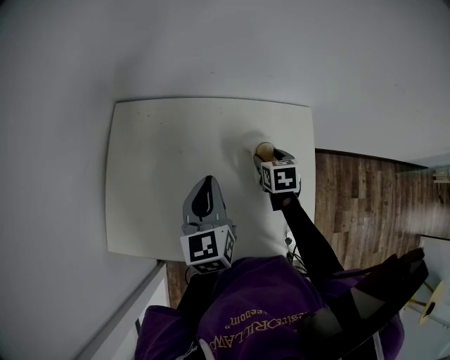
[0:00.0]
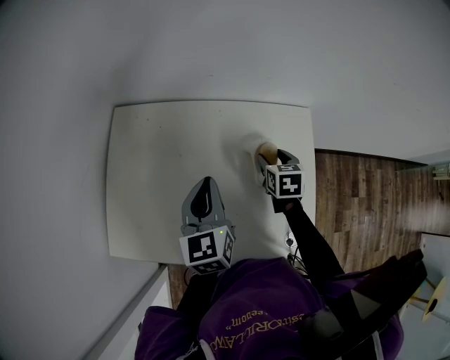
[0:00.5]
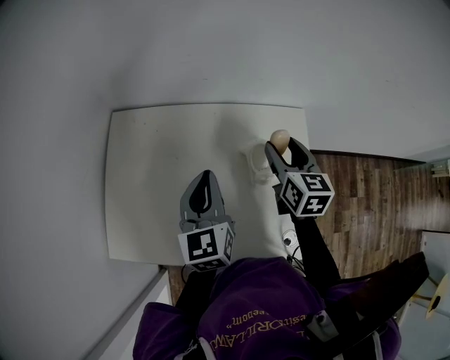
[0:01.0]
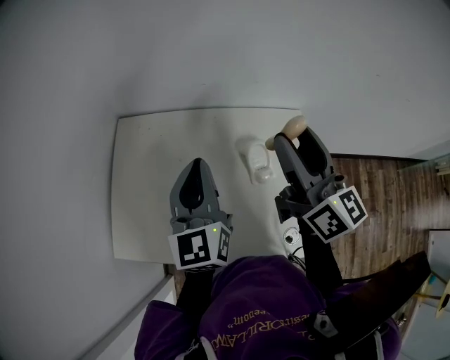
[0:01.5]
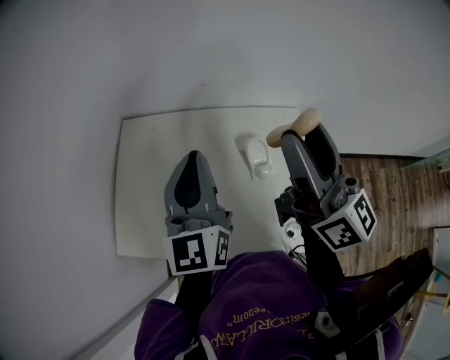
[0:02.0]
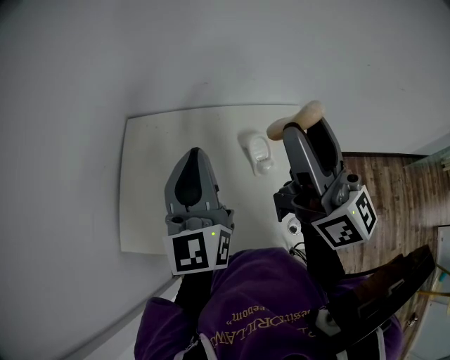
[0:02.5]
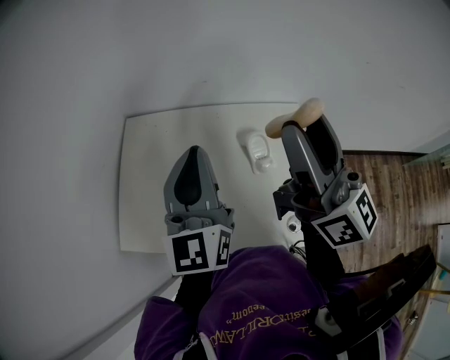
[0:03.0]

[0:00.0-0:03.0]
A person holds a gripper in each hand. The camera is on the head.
0:00.0 to 0:01.5: The right gripper travels upward by about 35 cm, and angles its fingers upward, by approximately 60 degrees. Meanwhile the left gripper goes some 10 cm upward.
0:01.5 to 0:03.0: The left gripper moves upward, about 10 cm, while the right gripper travels upward and backward by some 10 cm.

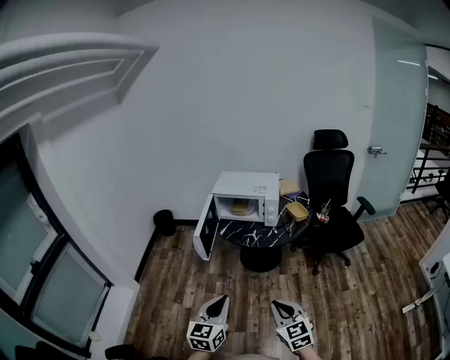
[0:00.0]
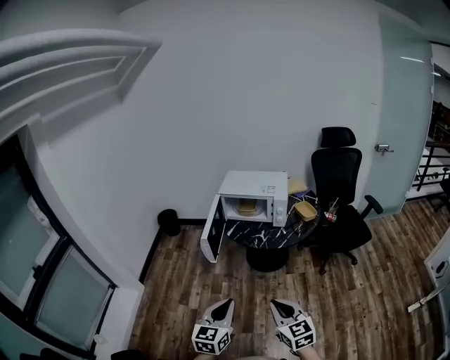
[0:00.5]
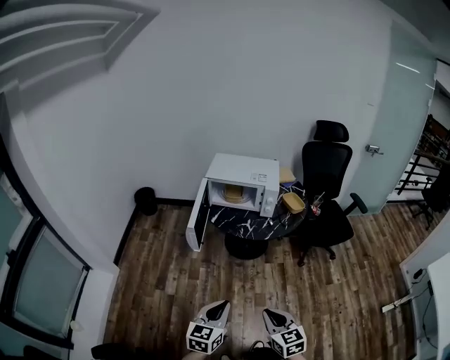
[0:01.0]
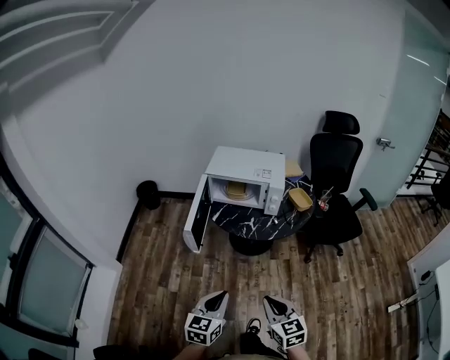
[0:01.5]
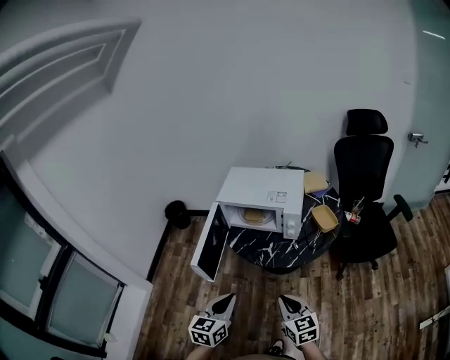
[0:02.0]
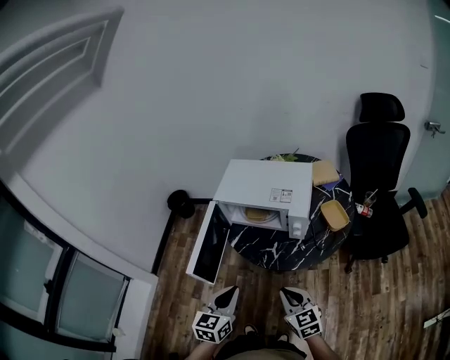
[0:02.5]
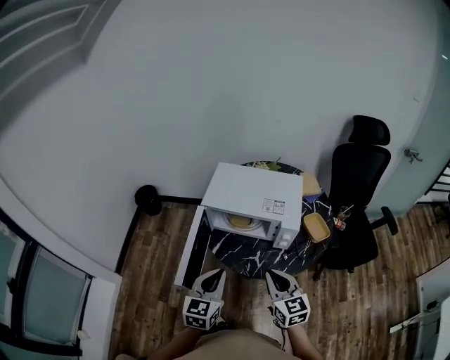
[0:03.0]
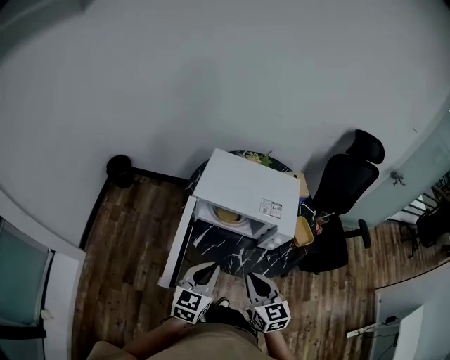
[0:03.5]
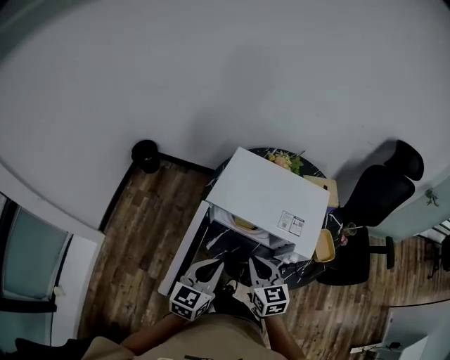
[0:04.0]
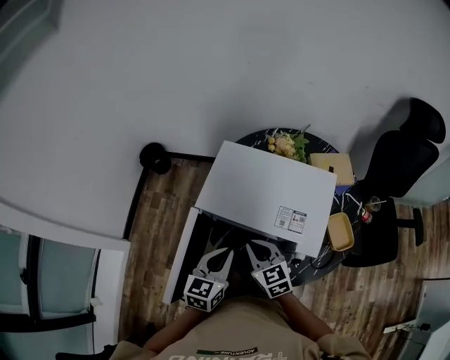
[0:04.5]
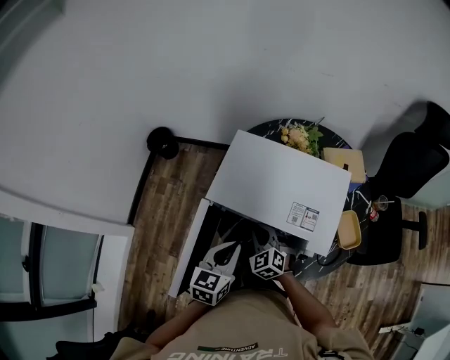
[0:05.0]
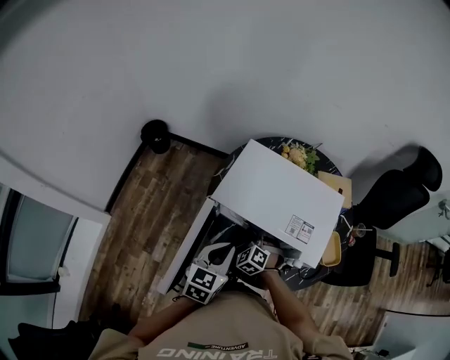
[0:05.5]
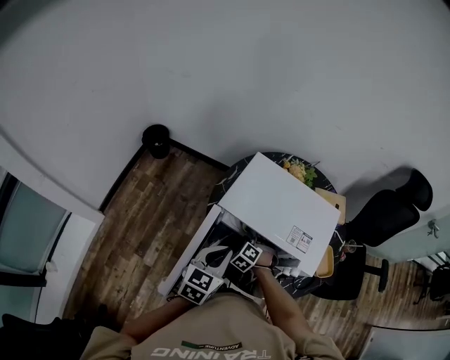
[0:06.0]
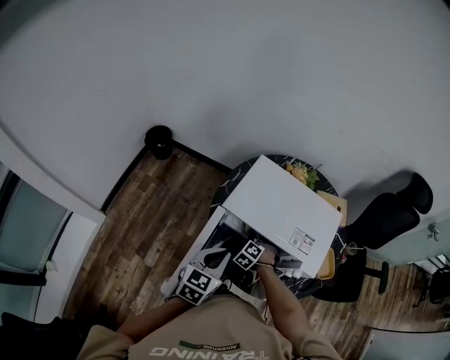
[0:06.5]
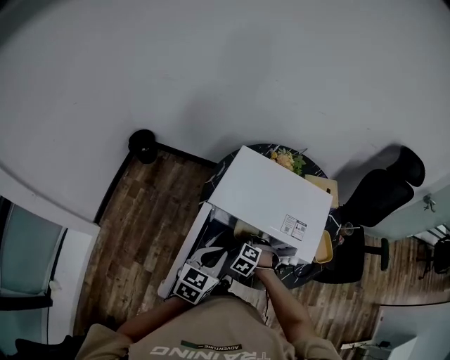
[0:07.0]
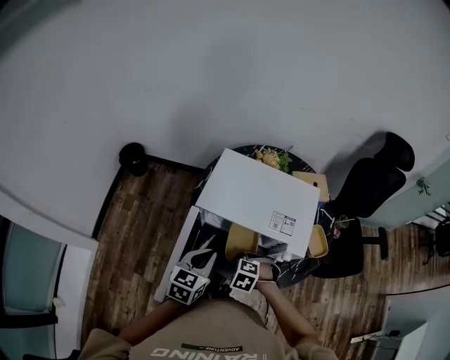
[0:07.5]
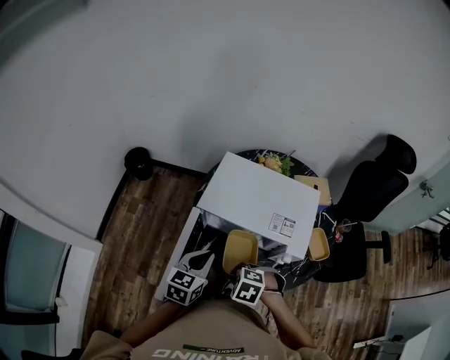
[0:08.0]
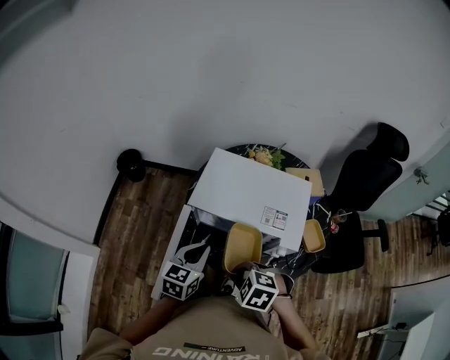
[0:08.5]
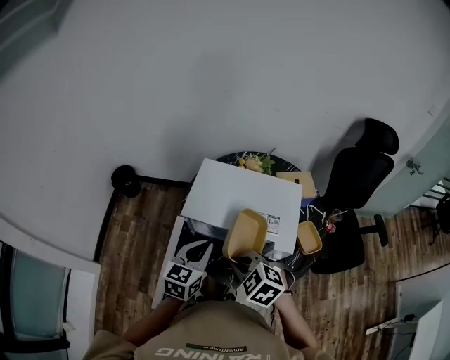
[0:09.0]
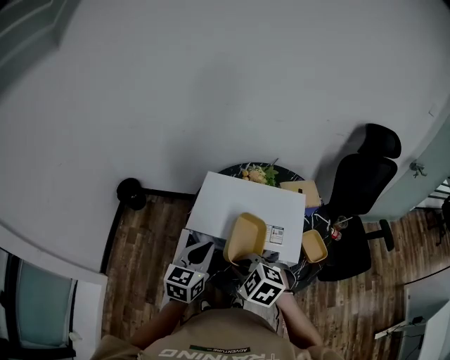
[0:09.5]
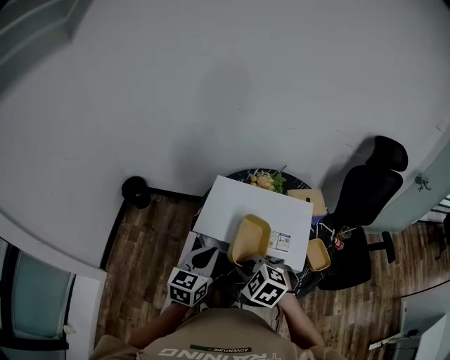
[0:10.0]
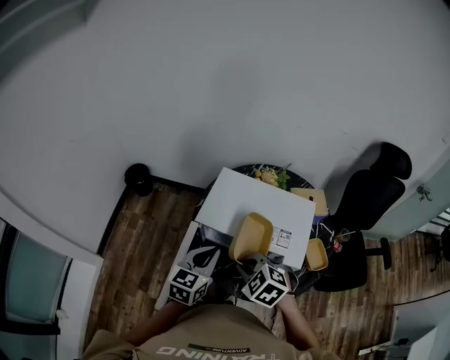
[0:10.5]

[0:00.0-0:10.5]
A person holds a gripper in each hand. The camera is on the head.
0:00.0 to 0:02.0: The grippers both shift forward by some 25 cm.
0:02.0 to 0:04.0: The two grippers go about 30 cm forward.
0:04.0 to 0:06.5: The left gripper shifts roughly 5 cm forward; the right gripper travels downward and forward by roughly 25 cm, and angles its fingers downward, by roughly 40 degrees.
0:06.5 to 0:08.5: The right gripper is displaced upward by approximately 20 cm, and turns by roughly 30 degrees.
0:08.5 to 0:10.5: The right gripper travels forward by roughly 10 cm.

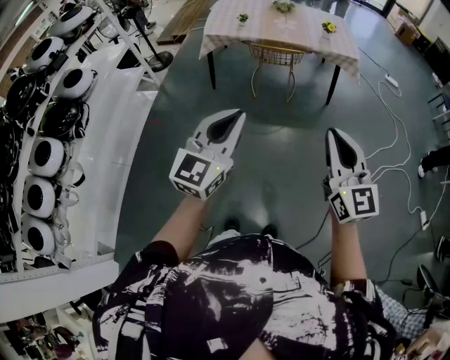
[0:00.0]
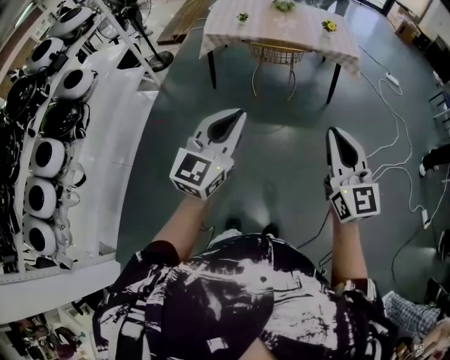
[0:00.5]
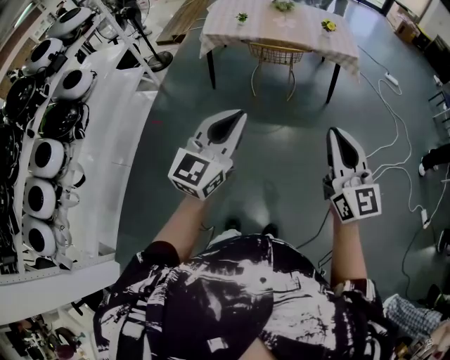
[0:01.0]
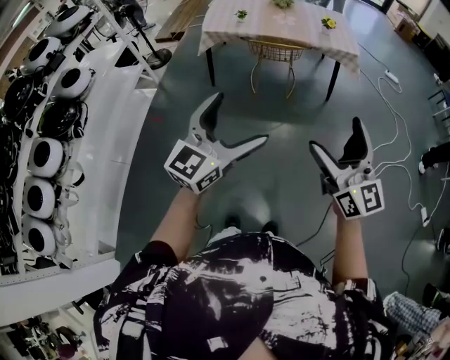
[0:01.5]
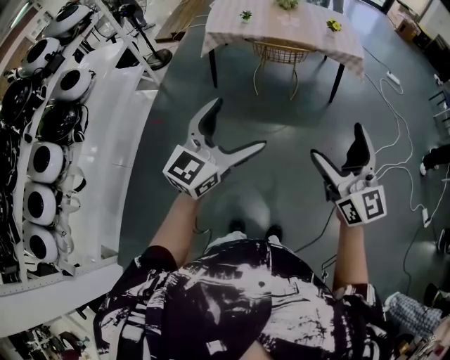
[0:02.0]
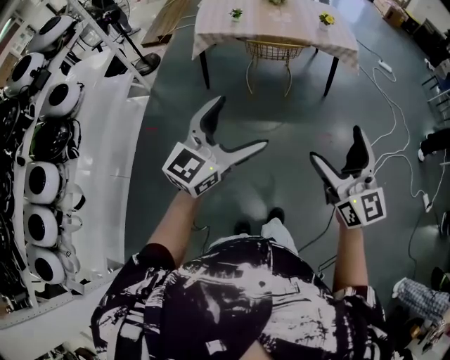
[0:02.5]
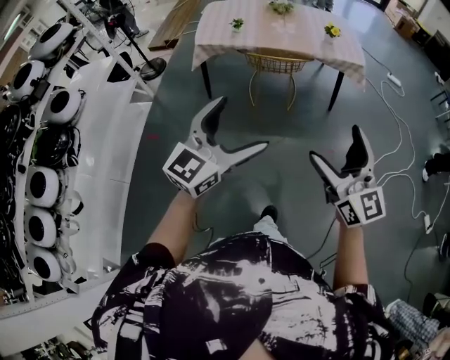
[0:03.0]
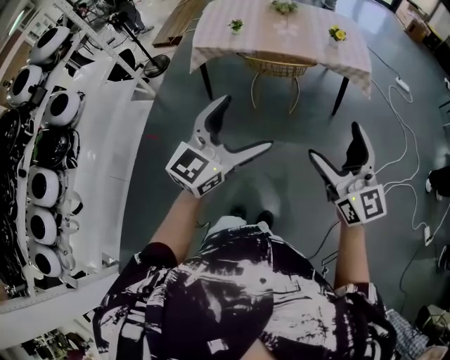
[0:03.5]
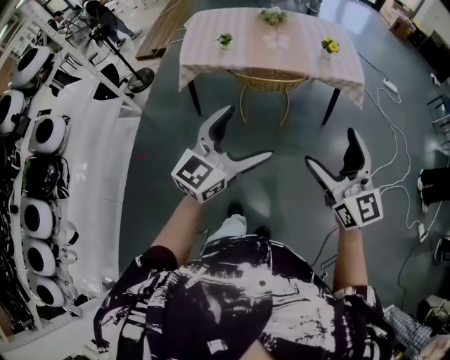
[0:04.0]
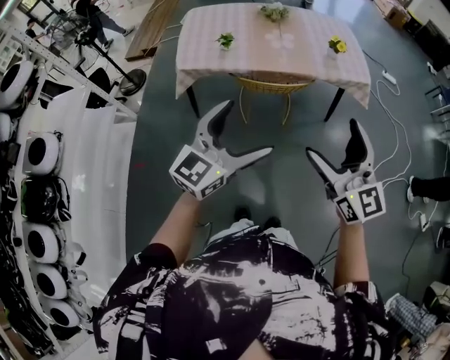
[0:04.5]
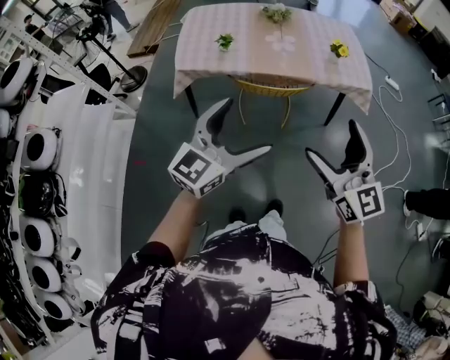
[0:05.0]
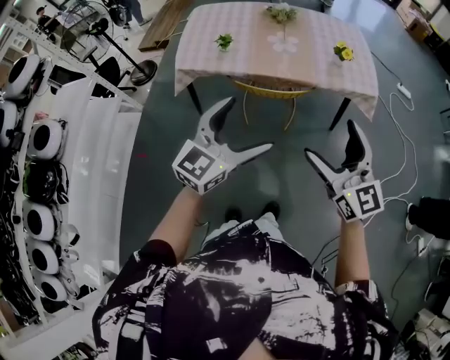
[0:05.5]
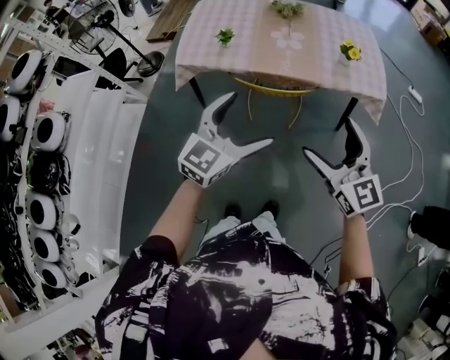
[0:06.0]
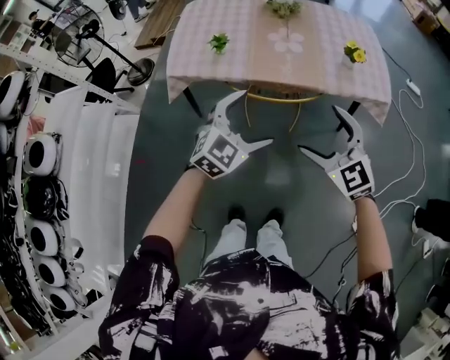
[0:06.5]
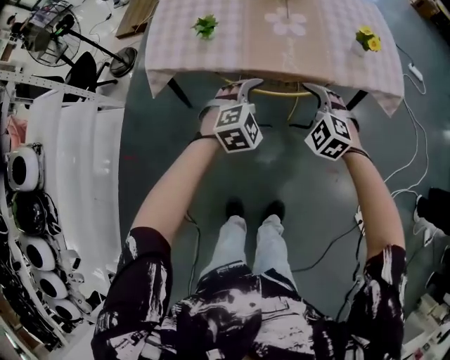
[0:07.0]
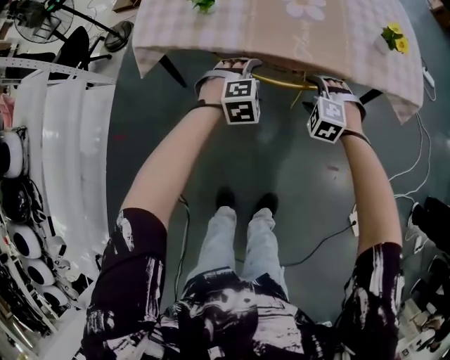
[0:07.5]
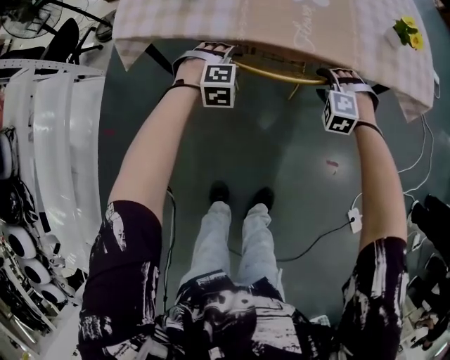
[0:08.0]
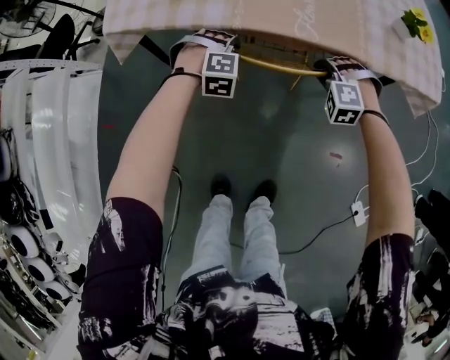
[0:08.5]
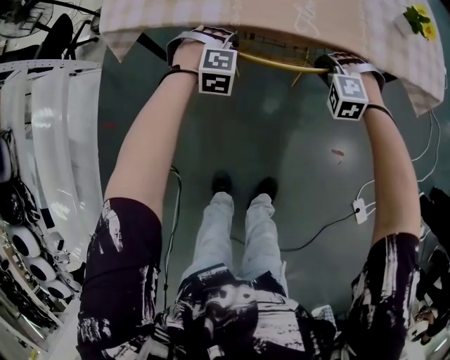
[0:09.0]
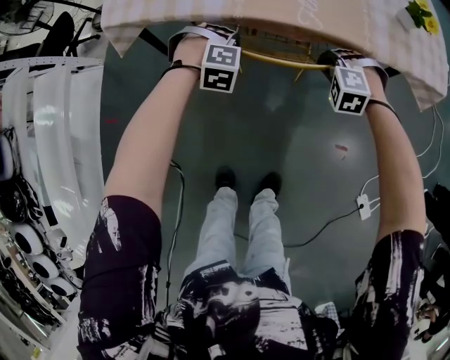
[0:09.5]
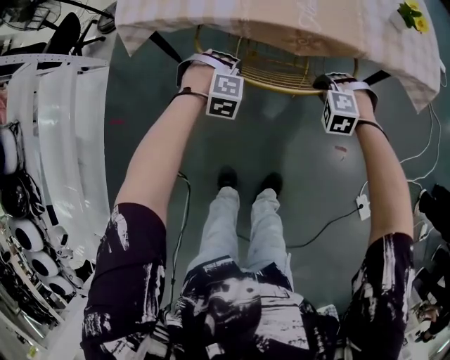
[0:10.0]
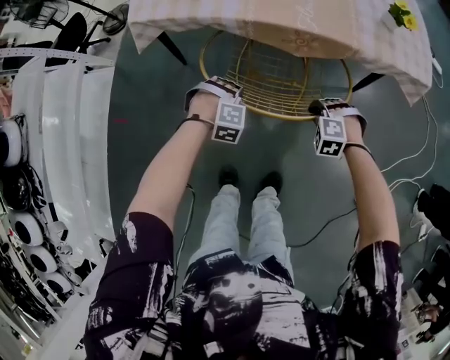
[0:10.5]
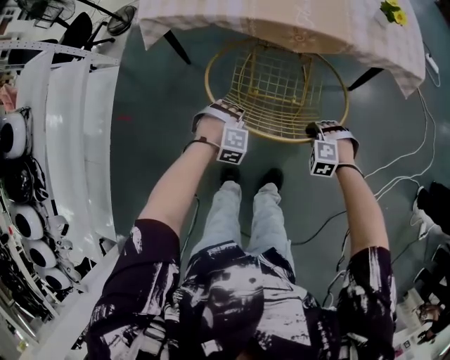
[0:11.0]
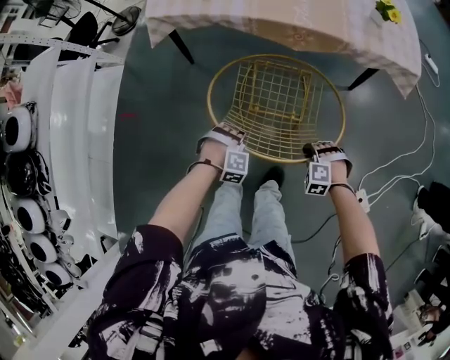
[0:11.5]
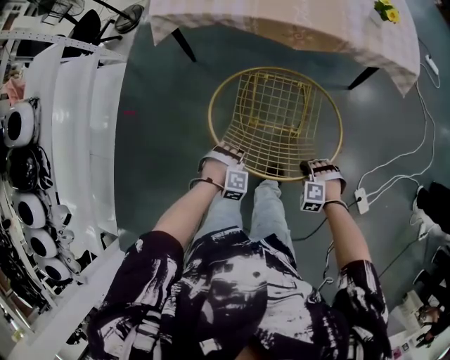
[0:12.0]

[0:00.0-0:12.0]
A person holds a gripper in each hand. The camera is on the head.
0:00.0 to 0:02.0: The right gripper shifts some 5 cm to the left, and opens. The left gripper opens up.
0:02.0 to 0:04.0: Both grippers travel together forward, about 35 cm.
0:04.0 to 0:06.0: Both grippers move forward, some 25 cm.
0:06.0 to 0:08.0: The two grippers go approximately 60 cm downward and forward. The right gripper tips its fingers downward by some 60 degrees, and closes up, while the left gripper tips its fingers downward by some 50 degrees, and closes up.
0:08.0 to 0:10.0: The two grippers go approximately 10 cm backward. The left gripper closes. Meanwhile the right gripper closes up.
0:10.0 to 0:12.0: The right gripper shifts by approximately 40 cm. Meanwhile the left gripper shifts by some 40 cm.

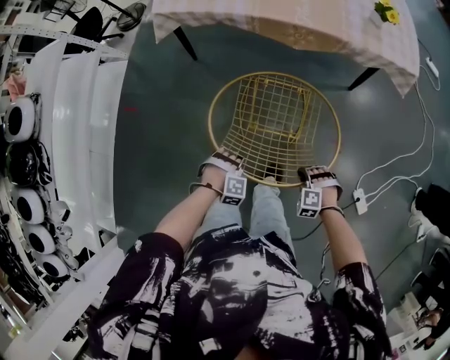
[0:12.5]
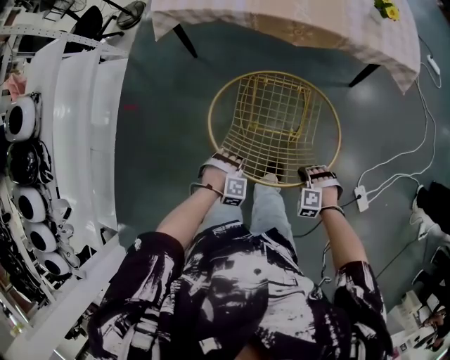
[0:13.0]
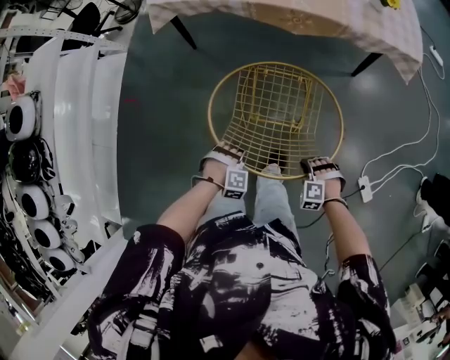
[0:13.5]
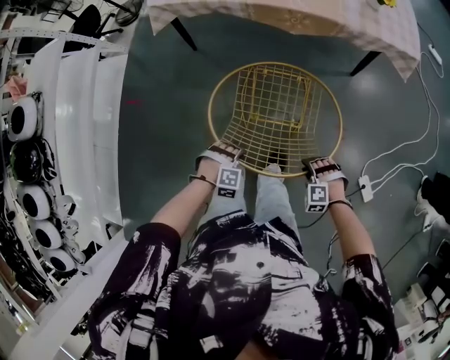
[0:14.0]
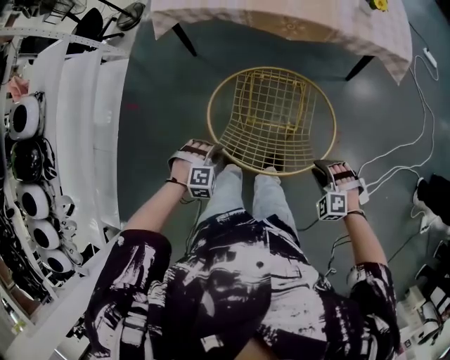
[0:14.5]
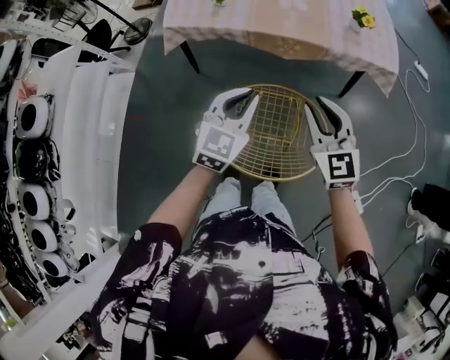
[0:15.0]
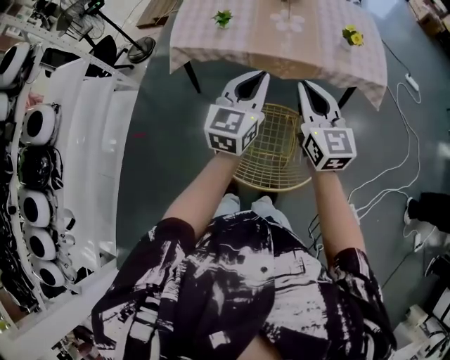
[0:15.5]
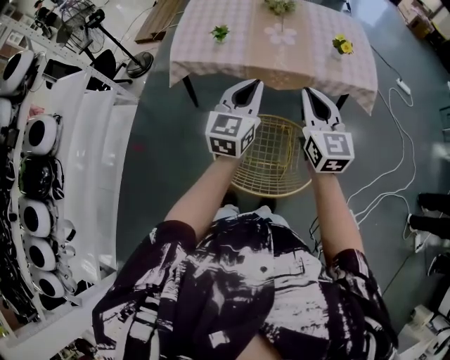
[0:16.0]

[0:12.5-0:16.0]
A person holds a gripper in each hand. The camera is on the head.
0:12.5 to 0:14.5: The grippers both shift upward by approximately 10 cm.
0:14.5 to 0:16.0: The grippers both shift upward and forward by approximately 50 cm. The left gripper tips its fingers upward by some 70 degrees. Meanwhile the right gripper tilts its fingers about 60 degrees upward.
